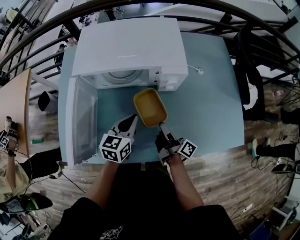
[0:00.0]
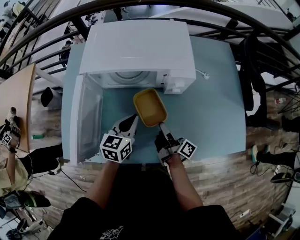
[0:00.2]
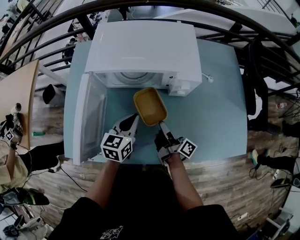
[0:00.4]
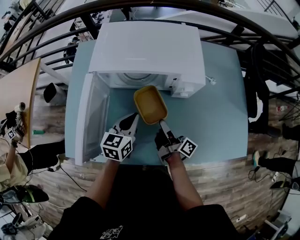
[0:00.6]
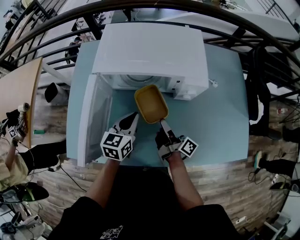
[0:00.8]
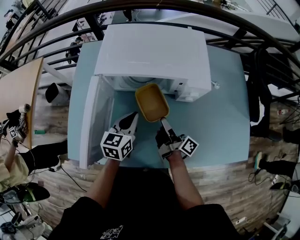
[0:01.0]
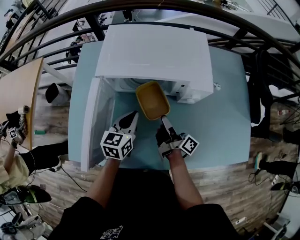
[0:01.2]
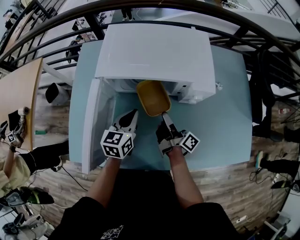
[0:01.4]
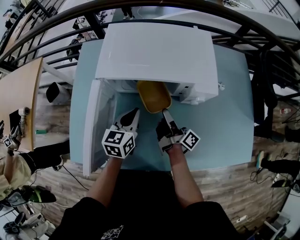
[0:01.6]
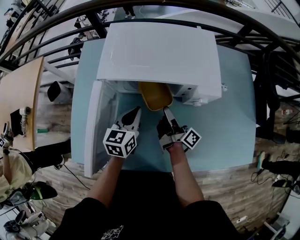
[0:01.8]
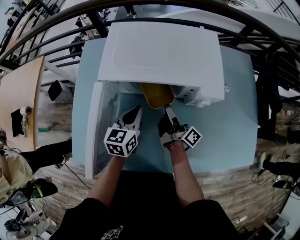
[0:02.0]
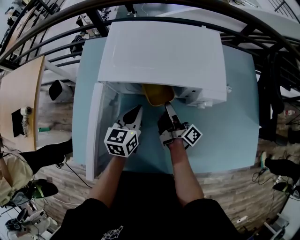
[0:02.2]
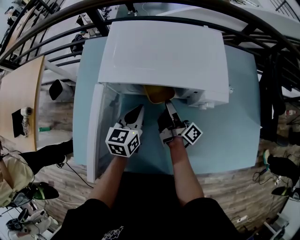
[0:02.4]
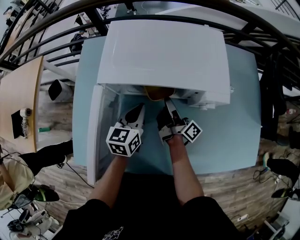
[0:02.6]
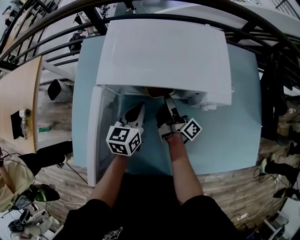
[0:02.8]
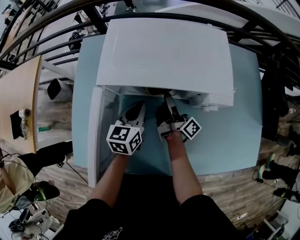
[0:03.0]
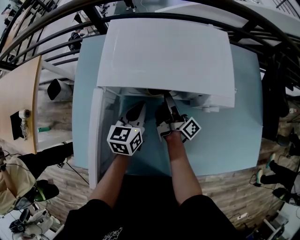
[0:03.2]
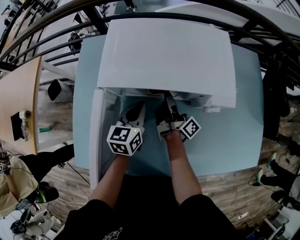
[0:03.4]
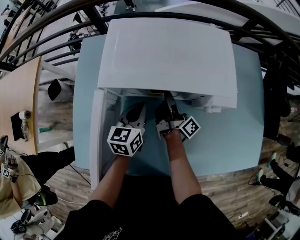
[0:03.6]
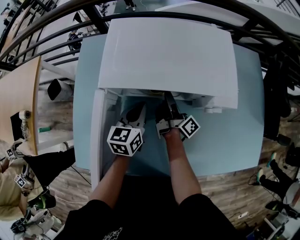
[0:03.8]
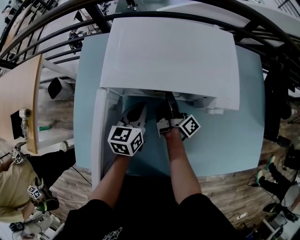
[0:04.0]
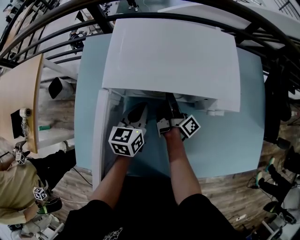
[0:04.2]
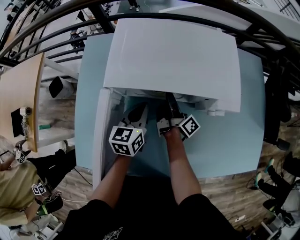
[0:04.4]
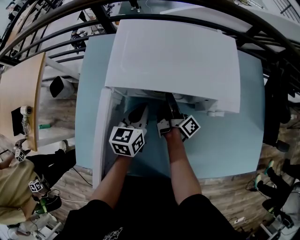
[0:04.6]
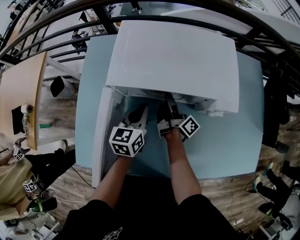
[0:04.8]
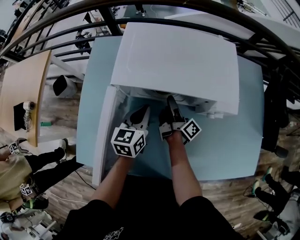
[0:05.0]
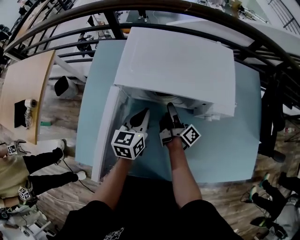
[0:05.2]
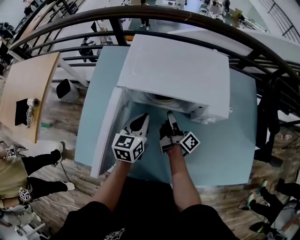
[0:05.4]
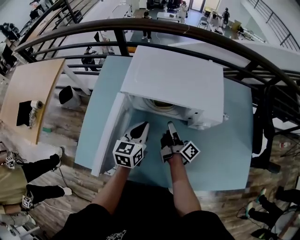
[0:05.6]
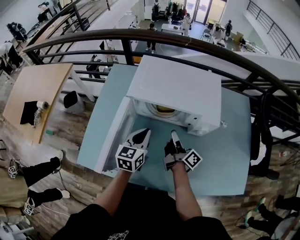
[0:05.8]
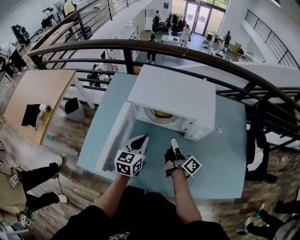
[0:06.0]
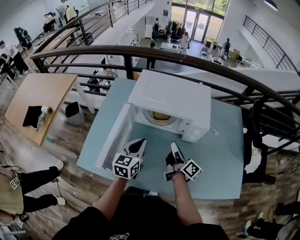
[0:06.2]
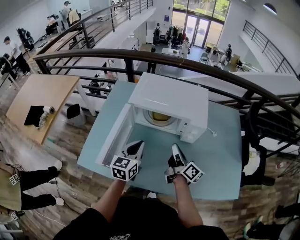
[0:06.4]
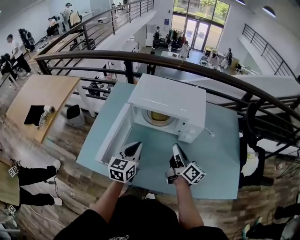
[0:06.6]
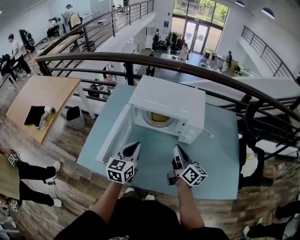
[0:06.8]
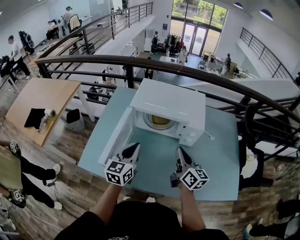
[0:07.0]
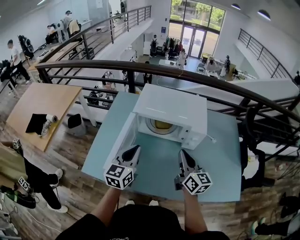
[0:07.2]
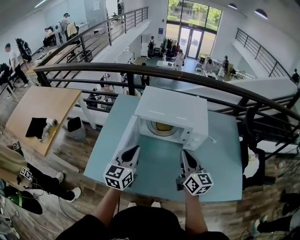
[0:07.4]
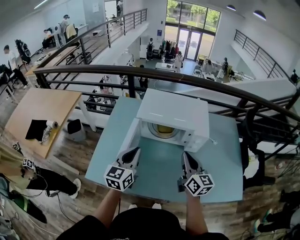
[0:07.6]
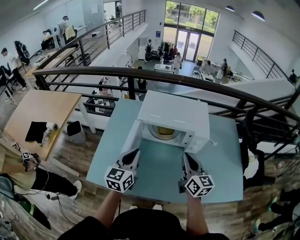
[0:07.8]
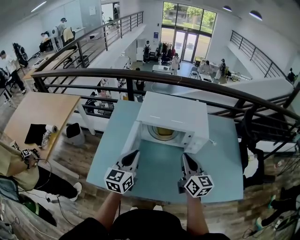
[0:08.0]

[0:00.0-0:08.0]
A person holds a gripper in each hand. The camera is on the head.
0:00.0 to 0:01.6: The left gripper moves to the left and forward, about 10 cm; the right gripper is displaced forward and to the left by about 15 cm.
0:01.6 to 0:03.2: The left gripper goes some 5 cm forward. Meanwhile the right gripper goes approximately 10 cm forward.
0:03.2 to 0:04.8: The right gripper opens up.
0:04.8 to 0:06.4: The right gripper shifts roughly 20 cm backward, upward and to the right, turns by about 30 degrees, and closes its fingers; the left gripper heads backward and upward, covering roughly 15 cm.
0:06.4 to 0:08.0: The left gripper travels upward and to the left by approximately 10 cm. The right gripper goes some 10 cm upward, and rolls counterclockwise, seen from behind, by approximately 40 degrees.

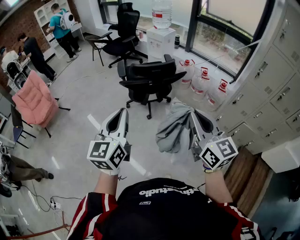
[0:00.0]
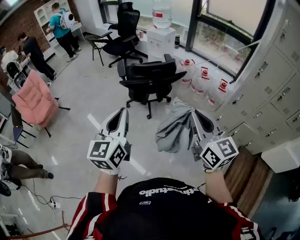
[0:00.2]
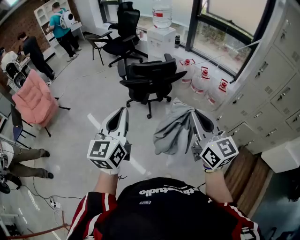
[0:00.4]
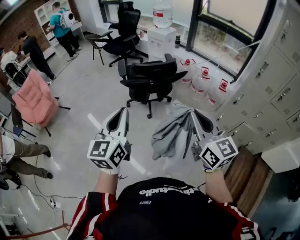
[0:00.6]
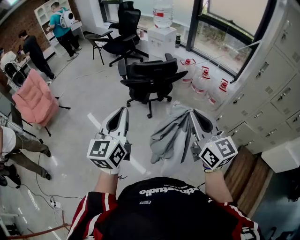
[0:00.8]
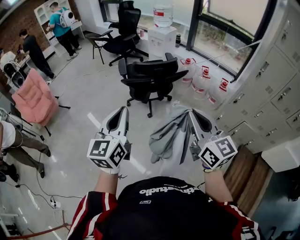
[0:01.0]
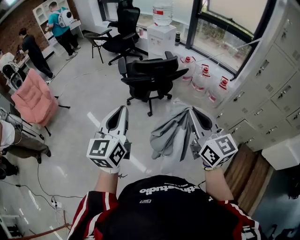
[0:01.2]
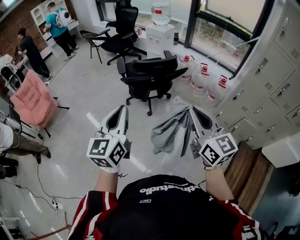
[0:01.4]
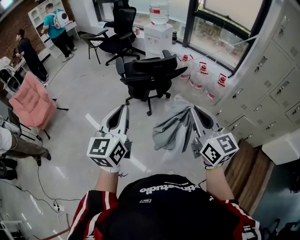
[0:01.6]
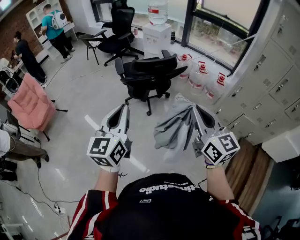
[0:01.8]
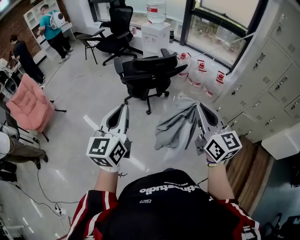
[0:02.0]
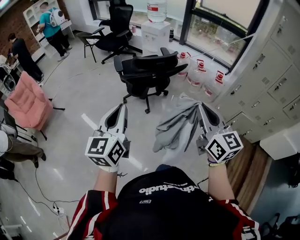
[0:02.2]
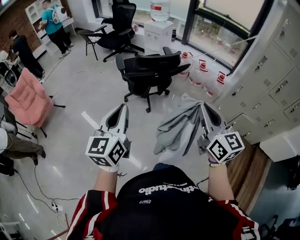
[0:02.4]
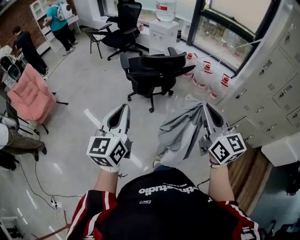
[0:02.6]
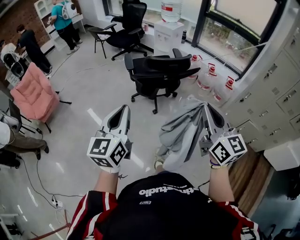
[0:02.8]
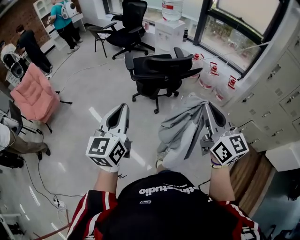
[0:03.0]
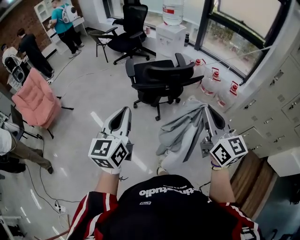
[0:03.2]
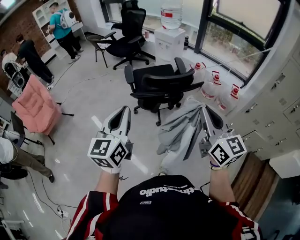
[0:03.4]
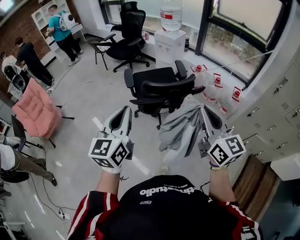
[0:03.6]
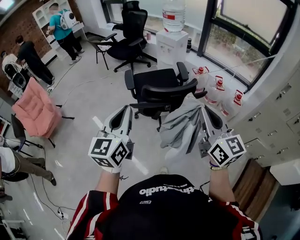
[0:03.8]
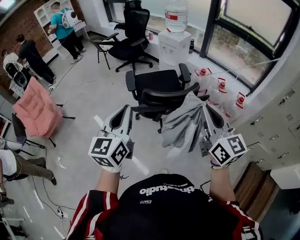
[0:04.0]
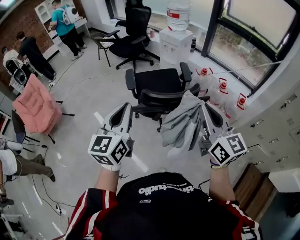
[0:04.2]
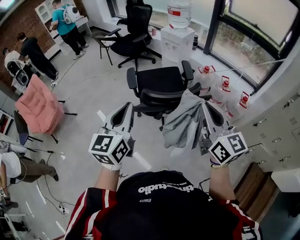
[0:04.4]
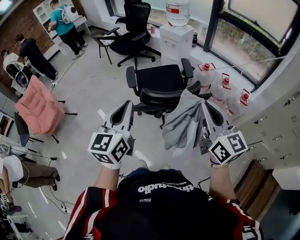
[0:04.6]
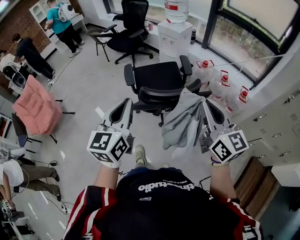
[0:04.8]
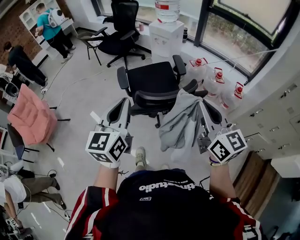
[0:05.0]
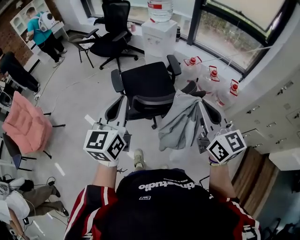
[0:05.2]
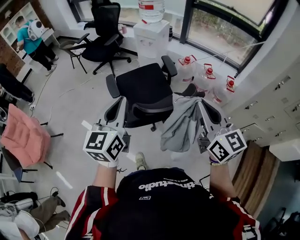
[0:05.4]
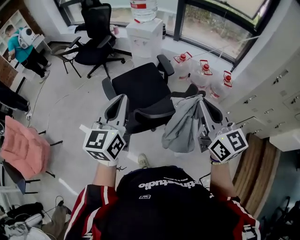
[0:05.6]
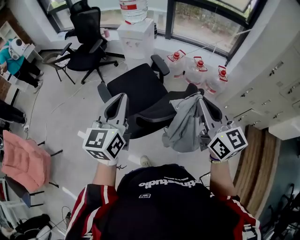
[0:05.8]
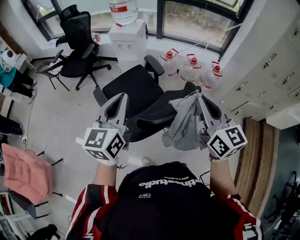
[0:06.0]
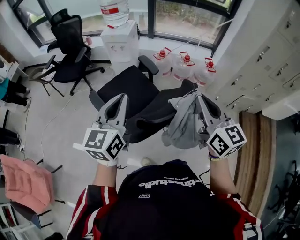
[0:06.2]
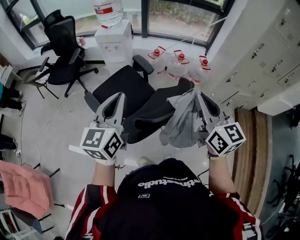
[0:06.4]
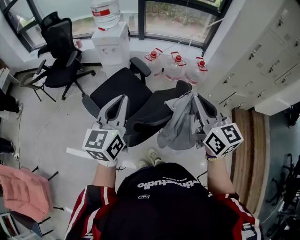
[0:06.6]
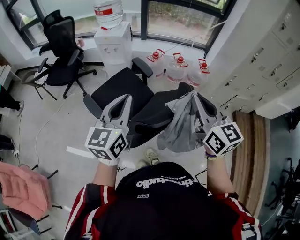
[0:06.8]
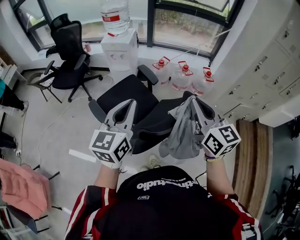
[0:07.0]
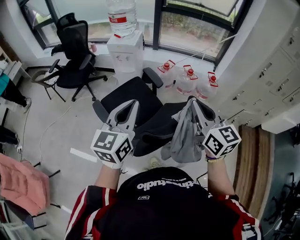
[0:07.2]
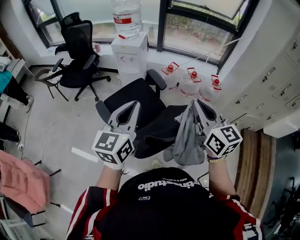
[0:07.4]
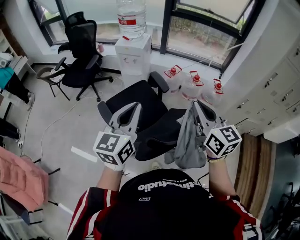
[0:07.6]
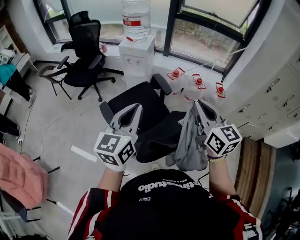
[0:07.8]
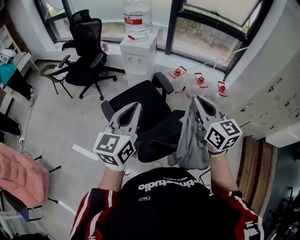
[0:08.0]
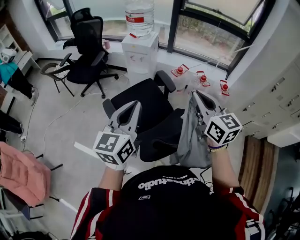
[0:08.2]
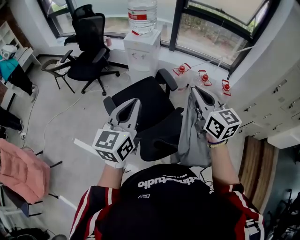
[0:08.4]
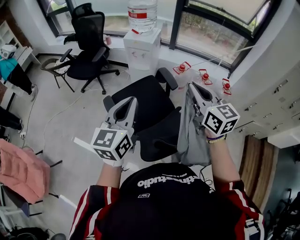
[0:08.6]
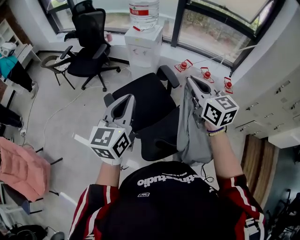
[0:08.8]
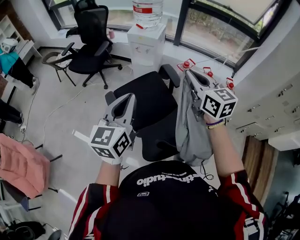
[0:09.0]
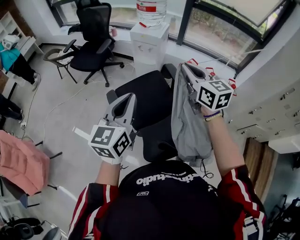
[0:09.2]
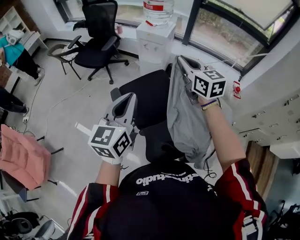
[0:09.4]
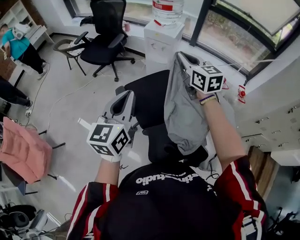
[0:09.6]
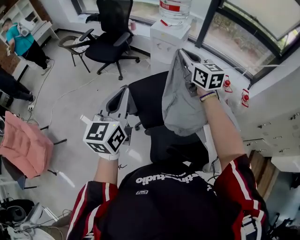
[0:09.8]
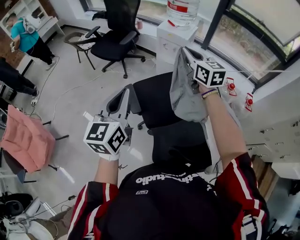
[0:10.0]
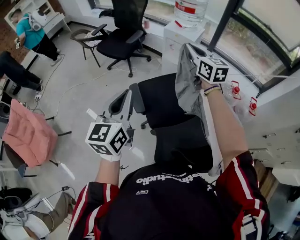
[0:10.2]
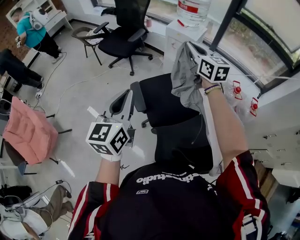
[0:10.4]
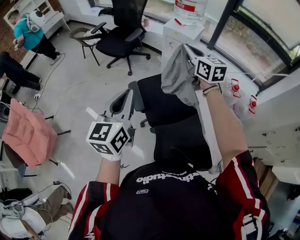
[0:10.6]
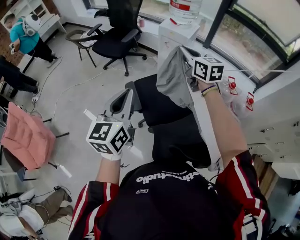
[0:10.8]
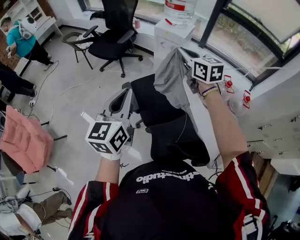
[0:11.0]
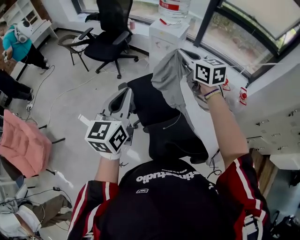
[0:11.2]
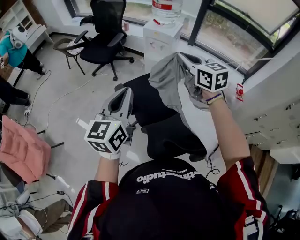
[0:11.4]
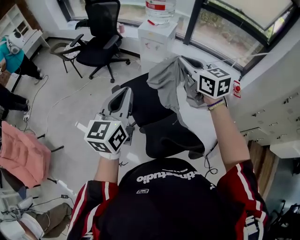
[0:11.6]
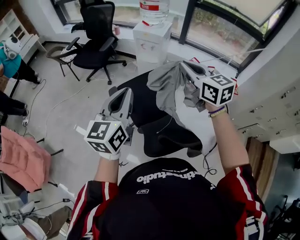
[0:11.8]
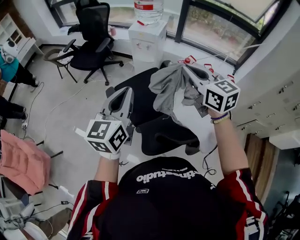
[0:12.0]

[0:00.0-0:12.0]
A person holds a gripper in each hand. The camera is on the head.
0:00.0 to 0:01.6: The grippers move only a little.
0:01.6 to 0:03.0: The left gripper heads to the left and forward, covering roughly 10 cm; the right gripper shifts approximately 5 cm forward.
0:03.0 to 0:04.4: Both grippers move forward, some 30 cm.
0:04.4 to 0:06.0: The right gripper moves some 15 cm, and changes its angle by about 30 degrees, while the left gripper moves approximately 25 cm, and changes its angle by some 30 degrees.
0:06.0 to 0:07.6: The right gripper travels forward and to the left by about 10 cm. The left gripper is displaced forward by about 5 cm.
0:07.6 to 0:09.0: The left gripper heads to the left and forward, covering approximately 10 cm, while the right gripper travels forward and to the left by roughly 20 cm.
0:09.0 to 0:10.4: The right gripper moves forward and to the left, about 25 cm. The left gripper is displaced to the left by approximately 10 cm.
0:10.4 to 0:12.0: The right gripper moves backward, some 25 cm, while the left gripper is displaced to the right and backward by some 15 cm.

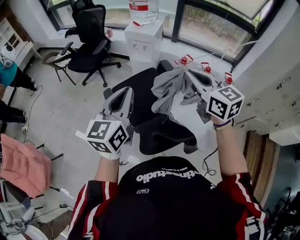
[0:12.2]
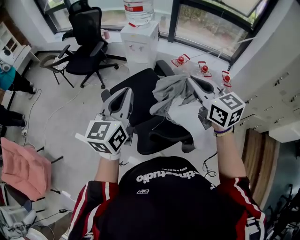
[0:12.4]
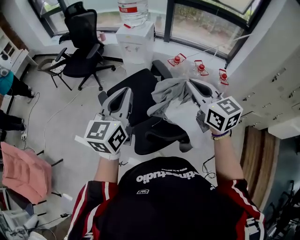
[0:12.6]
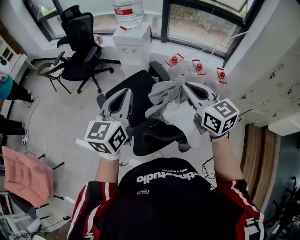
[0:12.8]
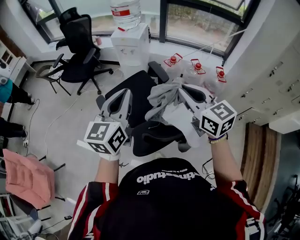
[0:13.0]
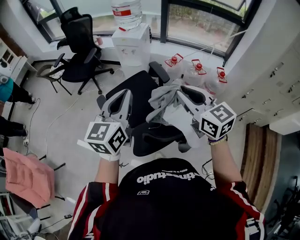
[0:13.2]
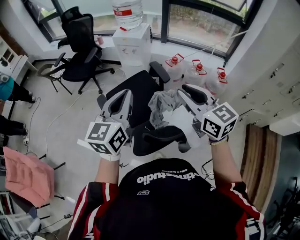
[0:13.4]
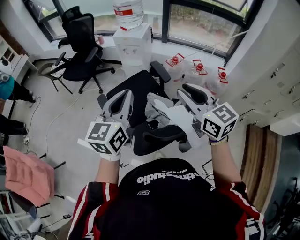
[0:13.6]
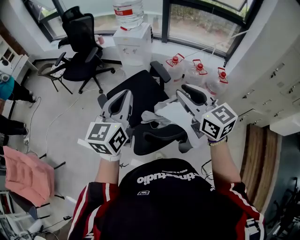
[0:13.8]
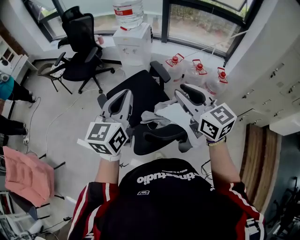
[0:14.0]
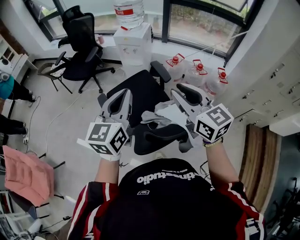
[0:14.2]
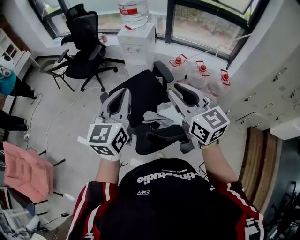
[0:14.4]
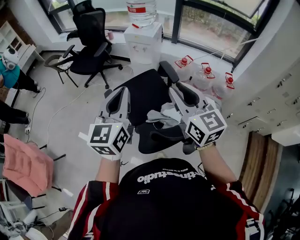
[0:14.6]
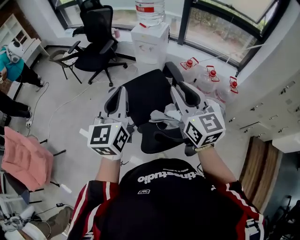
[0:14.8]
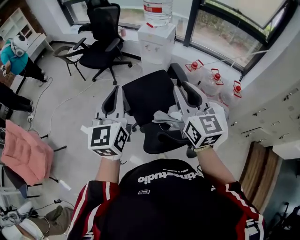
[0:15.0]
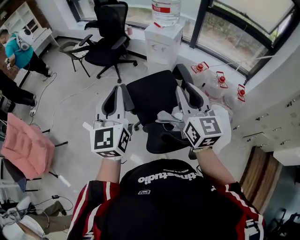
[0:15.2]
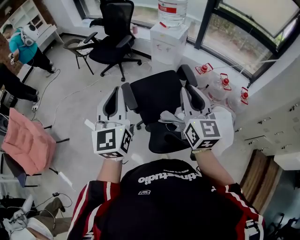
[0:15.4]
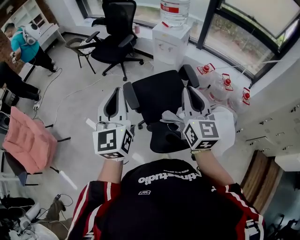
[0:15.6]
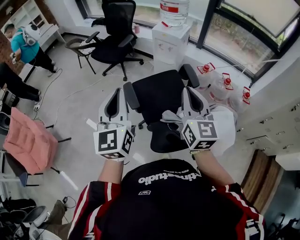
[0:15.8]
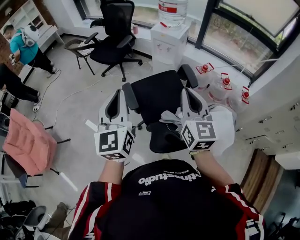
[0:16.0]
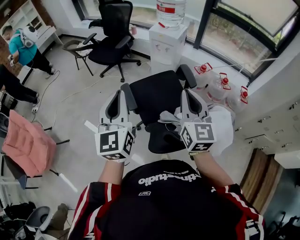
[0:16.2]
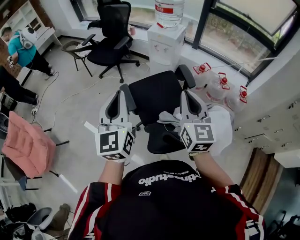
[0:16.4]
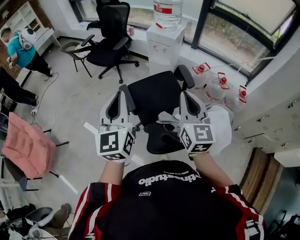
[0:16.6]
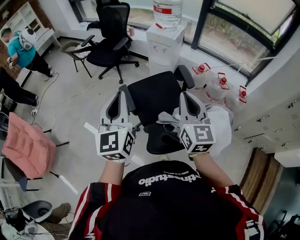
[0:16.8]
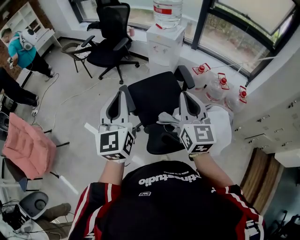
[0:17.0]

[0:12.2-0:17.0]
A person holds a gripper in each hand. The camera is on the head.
0:12.2 to 0:13.8: The right gripper goes some 5 cm backward, and opens; the left gripper moves to the right, about 5 cm.
0:13.8 to 0:15.4: Both grippers travel together to the left, some 15 cm. The left gripper swivels roughly 30 degrees.
0:15.4 to 0:17.0: The grippers stay close to where they were, moving slightly.
